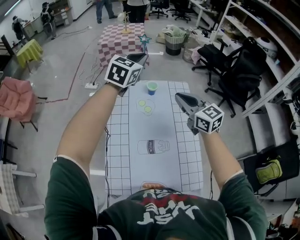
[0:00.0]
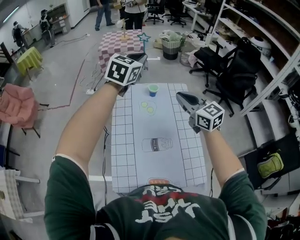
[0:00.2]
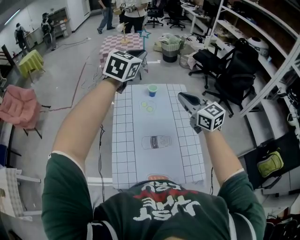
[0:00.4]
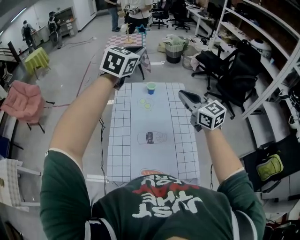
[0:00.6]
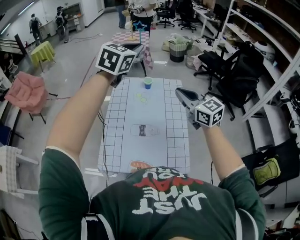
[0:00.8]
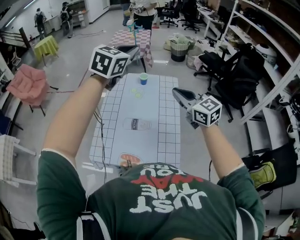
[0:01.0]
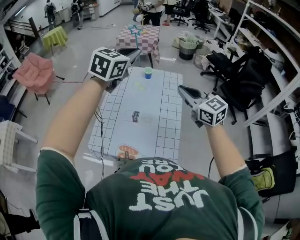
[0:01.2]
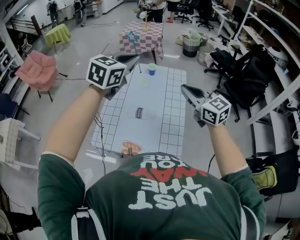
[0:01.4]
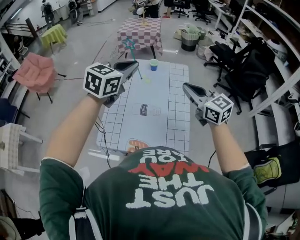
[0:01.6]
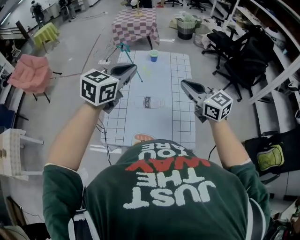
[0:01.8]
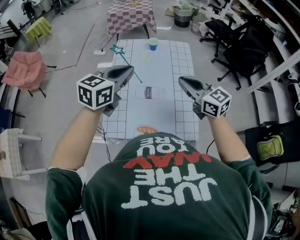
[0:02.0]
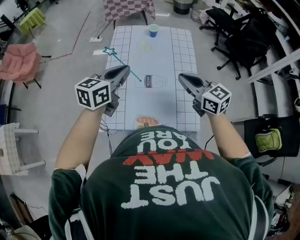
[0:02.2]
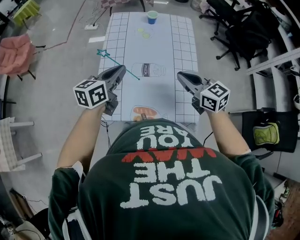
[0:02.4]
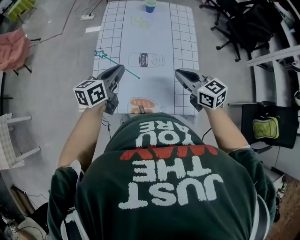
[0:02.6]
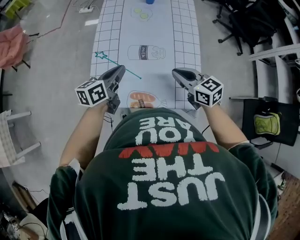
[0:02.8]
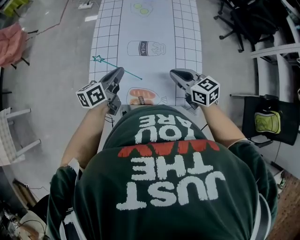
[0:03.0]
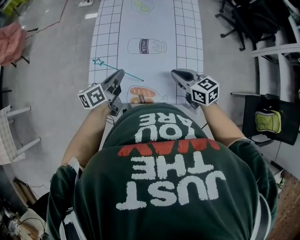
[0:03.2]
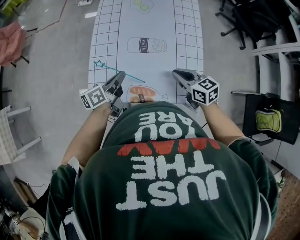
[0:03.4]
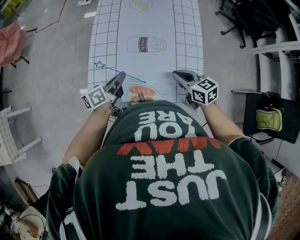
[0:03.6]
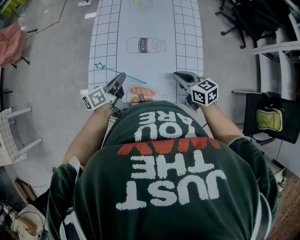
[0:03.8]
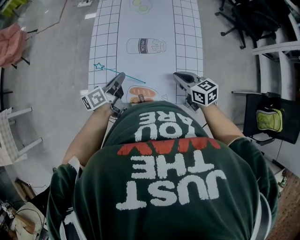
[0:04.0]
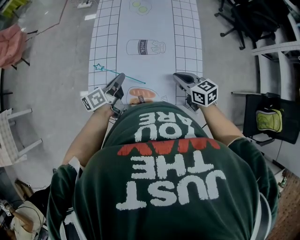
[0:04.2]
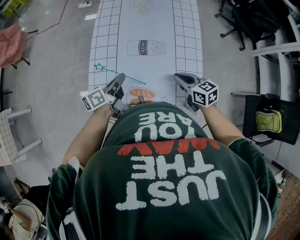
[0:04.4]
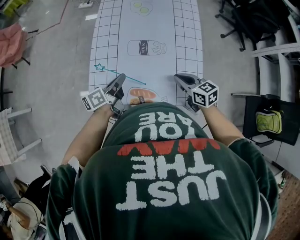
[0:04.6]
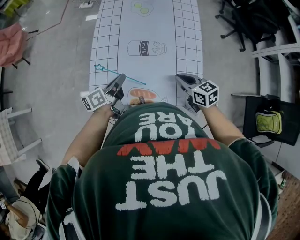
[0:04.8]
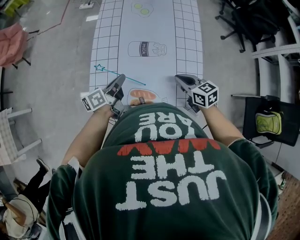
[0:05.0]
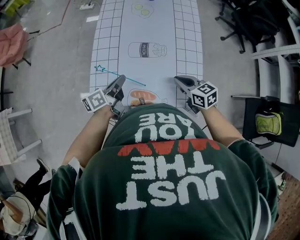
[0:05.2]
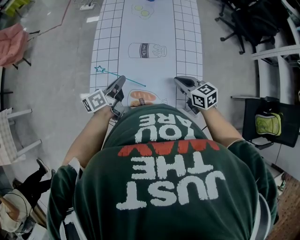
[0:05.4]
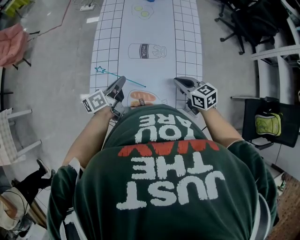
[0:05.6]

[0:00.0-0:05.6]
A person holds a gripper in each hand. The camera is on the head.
0:00.0 to 0:01.4: The left gripper shifts about 30 cm backward, while the right gripper moves backward and to the right, roughly 25 cm.
0:01.4 to 0:02.8: The right gripper goes about 25 cm downward and to the left, and swivels roughly 30 degrees. The left gripper is displaced downward by about 35 cm, and rolls counterclockwise, seen from behind, by some 50 degrees.
0:02.8 to 0:04.2: Both grippers travel together downward, approximately 10 cm. The left gripper rotates approximately 20 degrees.
0:04.2 to 0:05.6: Neither gripper changes place.

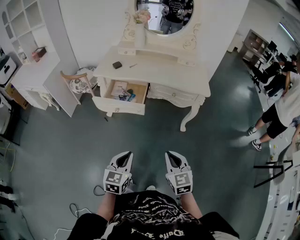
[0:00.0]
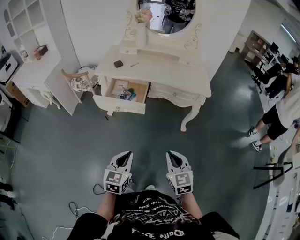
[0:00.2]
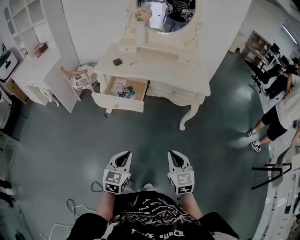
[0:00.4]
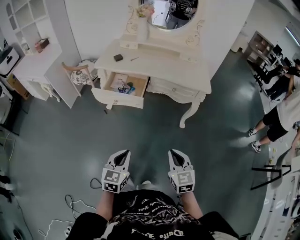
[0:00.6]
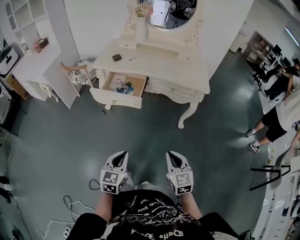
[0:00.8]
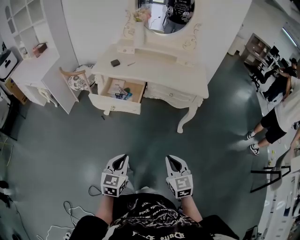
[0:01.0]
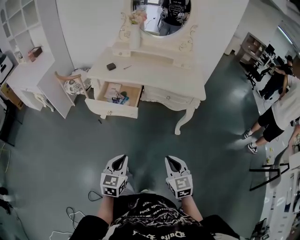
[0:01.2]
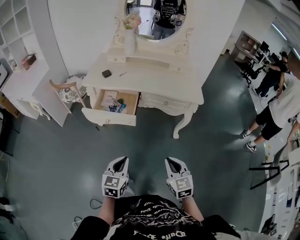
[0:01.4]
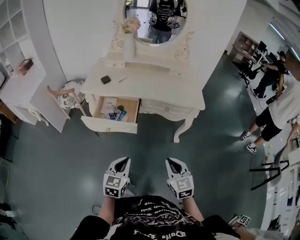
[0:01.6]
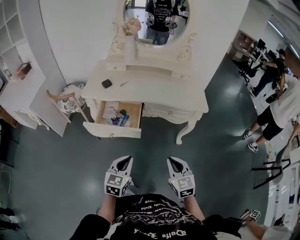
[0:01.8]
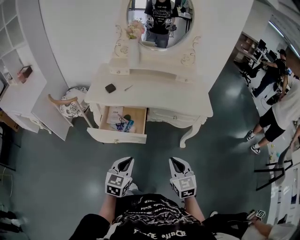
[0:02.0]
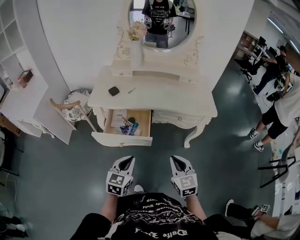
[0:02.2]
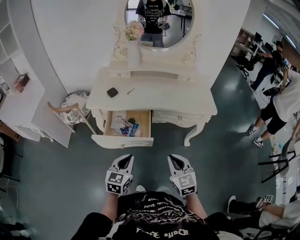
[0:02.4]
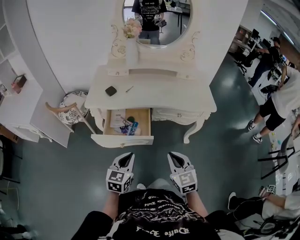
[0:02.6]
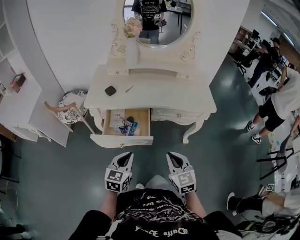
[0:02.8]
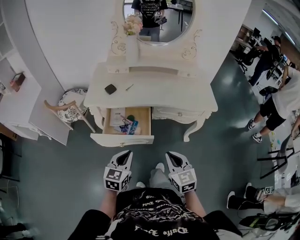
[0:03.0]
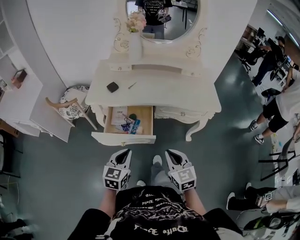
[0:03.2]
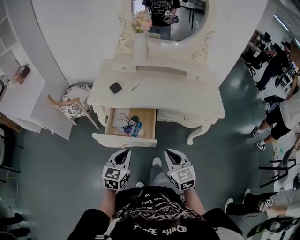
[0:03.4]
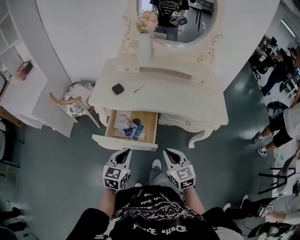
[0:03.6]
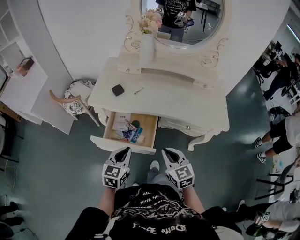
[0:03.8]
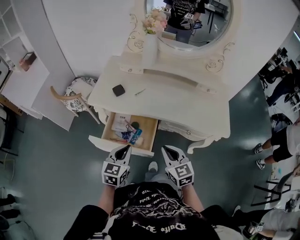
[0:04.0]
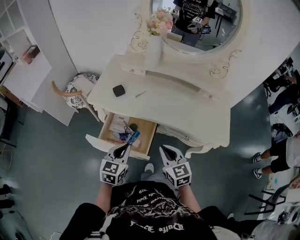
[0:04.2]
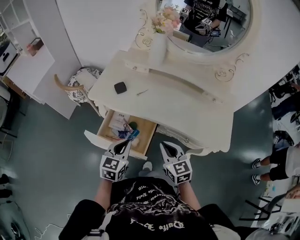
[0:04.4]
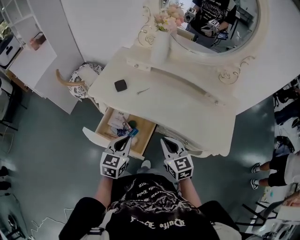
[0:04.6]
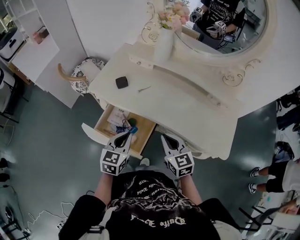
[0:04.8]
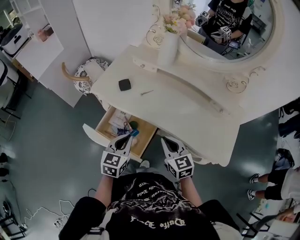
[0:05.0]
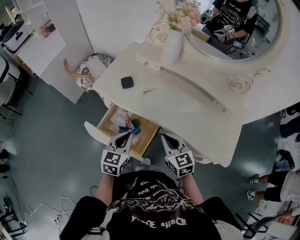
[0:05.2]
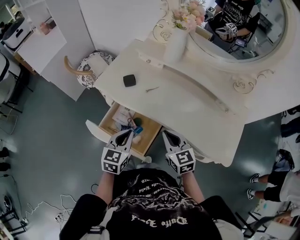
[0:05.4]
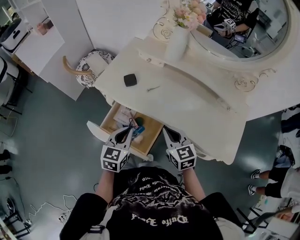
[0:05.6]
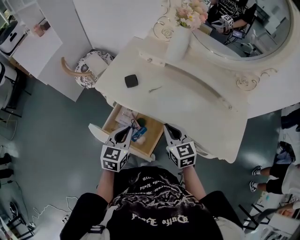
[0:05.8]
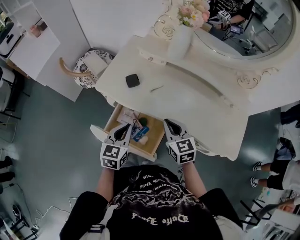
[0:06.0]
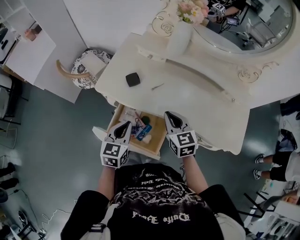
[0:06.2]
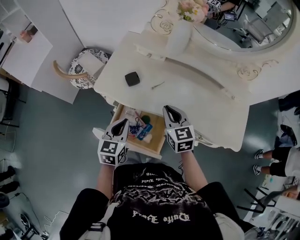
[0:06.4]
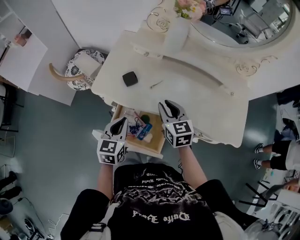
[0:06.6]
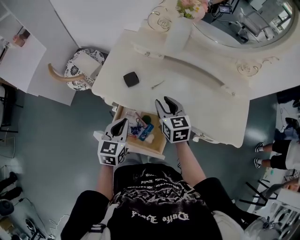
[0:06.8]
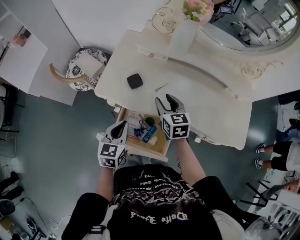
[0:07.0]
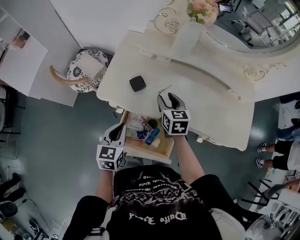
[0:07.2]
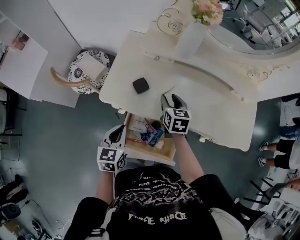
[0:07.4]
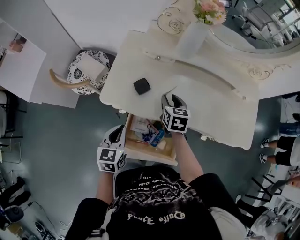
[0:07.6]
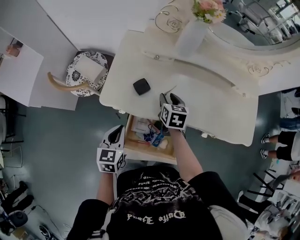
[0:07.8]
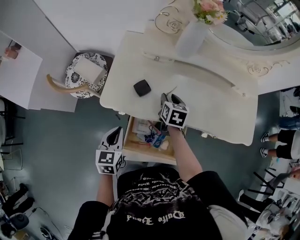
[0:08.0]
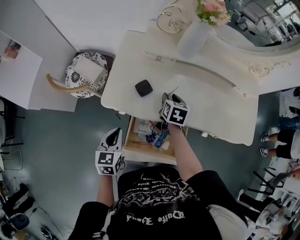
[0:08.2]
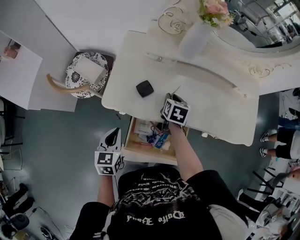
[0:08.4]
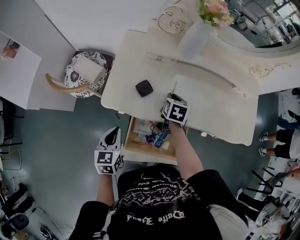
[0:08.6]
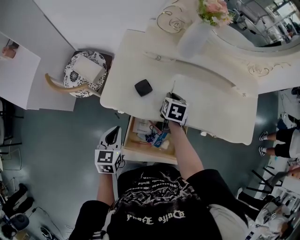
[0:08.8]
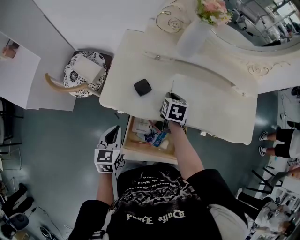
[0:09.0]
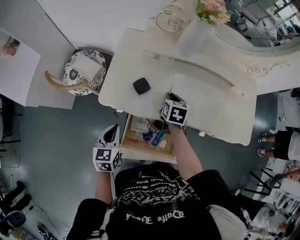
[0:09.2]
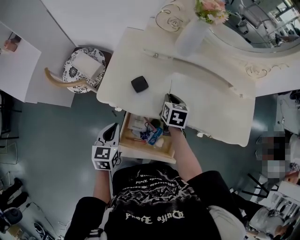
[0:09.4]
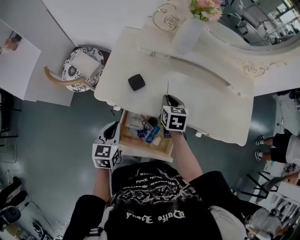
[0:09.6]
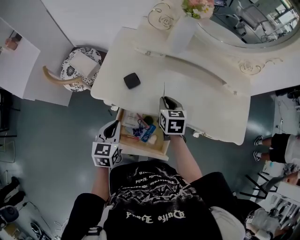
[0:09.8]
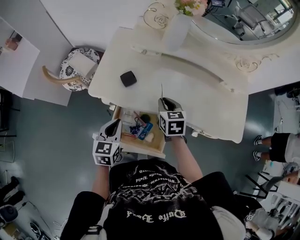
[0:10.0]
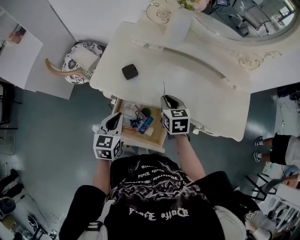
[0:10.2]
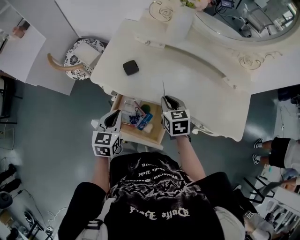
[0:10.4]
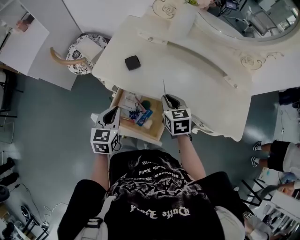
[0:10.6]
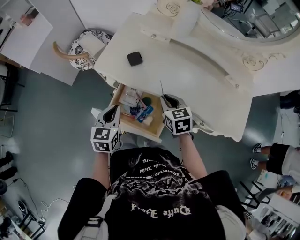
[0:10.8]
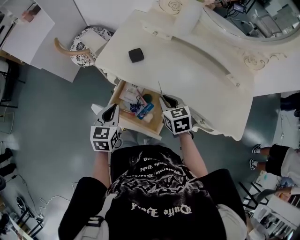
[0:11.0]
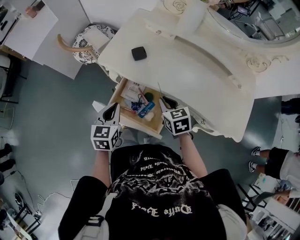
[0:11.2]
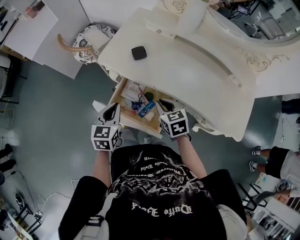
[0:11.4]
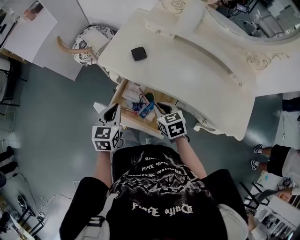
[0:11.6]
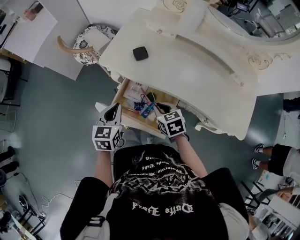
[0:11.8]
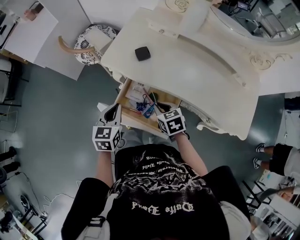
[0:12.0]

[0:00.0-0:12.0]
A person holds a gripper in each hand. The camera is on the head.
0:00.0 to 0:01.6: Both grippers move forward, approximately 10 cm.
0:01.6 to 0:03.0: The left gripper is displaced forward and to the left by roughly 15 cm. The right gripper travels to the left and forward by about 15 cm.
0:03.0 to 0:04.4: Both grippers travel together forward, about 20 cm. The right gripper rotates some 20 degrees.
0:04.4 to 0:06.0: The left gripper goes approximately 10 cm forward. Meanwhile the right gripper heads forward, covering some 15 cm.
0:06.0 to 0:07.6: The left gripper travels to the left and forward by roughly 15 cm. The right gripper shifts some 15 cm forward and downward, changes its angle by some 30 degrees, and opens.
0:07.6 to 0:09.0: The right gripper closes up.
0:09.0 to 0:10.4: The left gripper goes approximately 10 cm to the right, while the right gripper shifts about 10 cm backward and upward, and turns by roughly 30 degrees.
0:10.4 to 0:12.0: The right gripper travels to the left, backward and downward by some 15 cm, and swivels approximately 20 degrees; the left gripper changes place by approximately 5 cm.

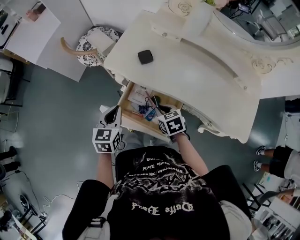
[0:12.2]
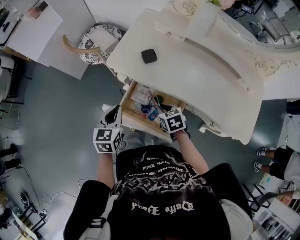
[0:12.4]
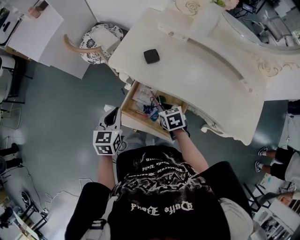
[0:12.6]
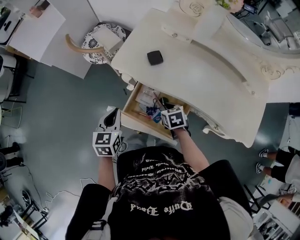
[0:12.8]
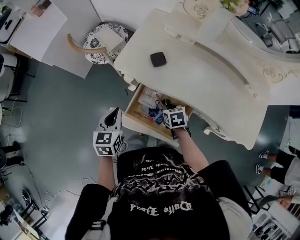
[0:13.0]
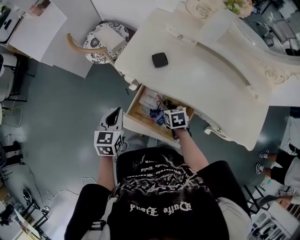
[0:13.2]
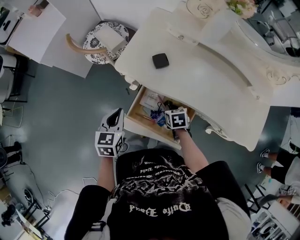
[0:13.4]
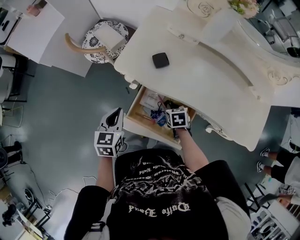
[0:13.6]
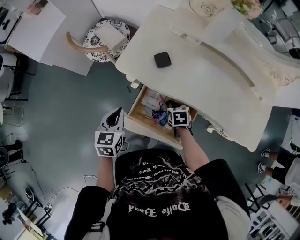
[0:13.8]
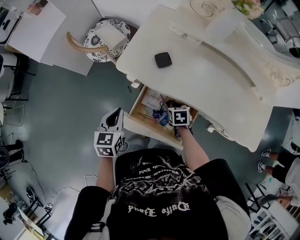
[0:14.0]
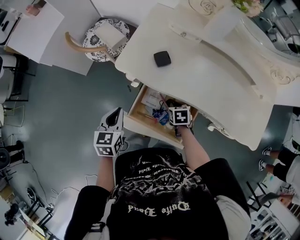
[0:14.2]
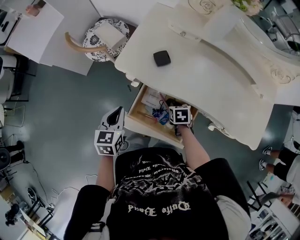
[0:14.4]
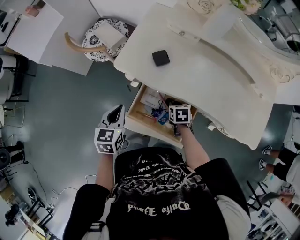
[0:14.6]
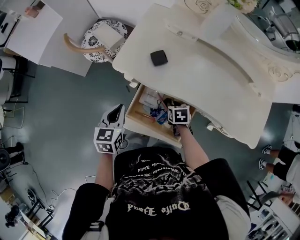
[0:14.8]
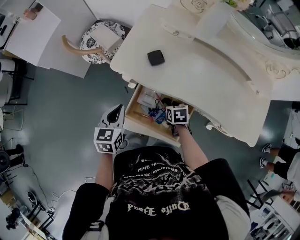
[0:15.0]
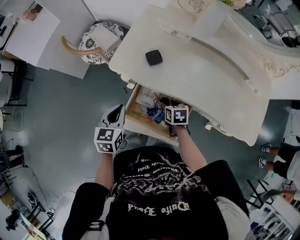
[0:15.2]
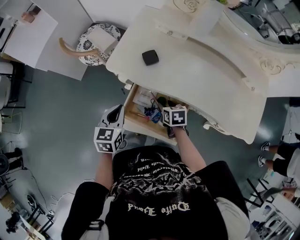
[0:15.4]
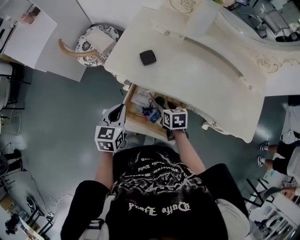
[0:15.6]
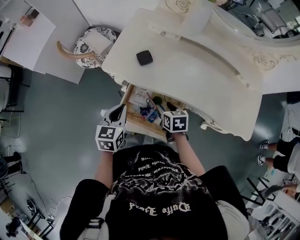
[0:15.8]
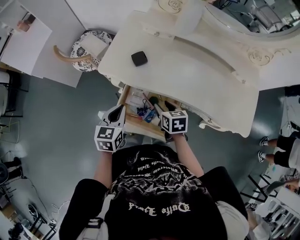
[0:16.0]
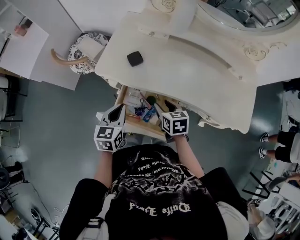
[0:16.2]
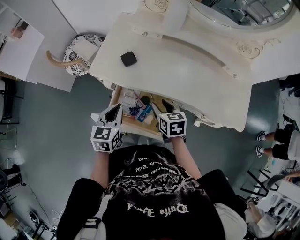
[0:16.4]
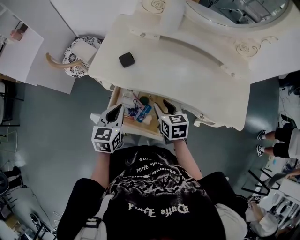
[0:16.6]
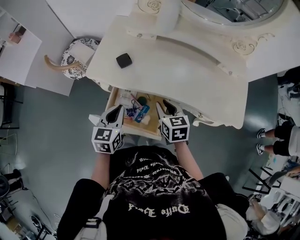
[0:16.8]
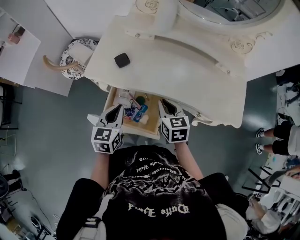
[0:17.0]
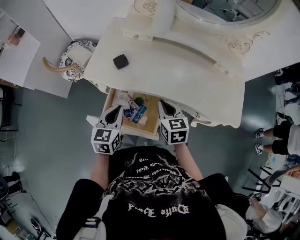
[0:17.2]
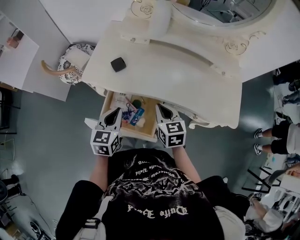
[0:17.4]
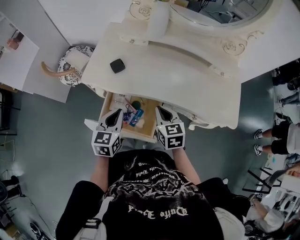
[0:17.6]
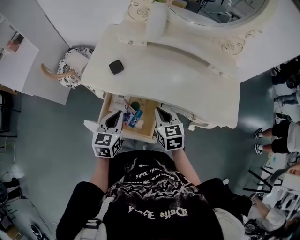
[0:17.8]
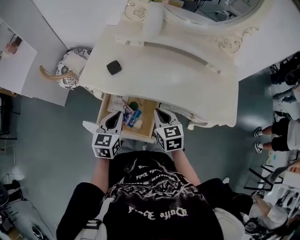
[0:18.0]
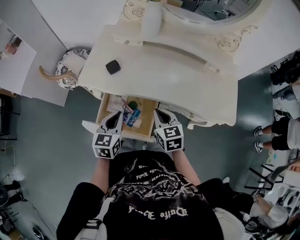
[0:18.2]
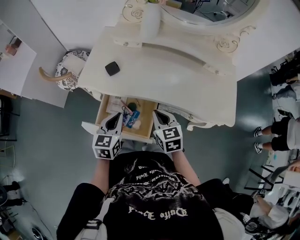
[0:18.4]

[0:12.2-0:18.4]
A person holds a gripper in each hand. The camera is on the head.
0:12.2 to 0:13.8: The left gripper shifts by some 5 cm. Meanwhile the right gripper moves downward and forward, about 10 cm.
0:13.8 to 0:15.4: The right gripper opens its fingers.
0:15.4 to 0:16.8: The right gripper shifts roughly 15 cm upward and to the right, and rotates roughly 20 degrees. Meanwhile the left gripper heads to the right, covering roughly 10 cm.
0:16.8 to 0:18.4: The right gripper closes up.
